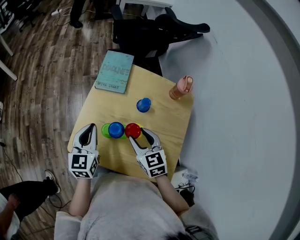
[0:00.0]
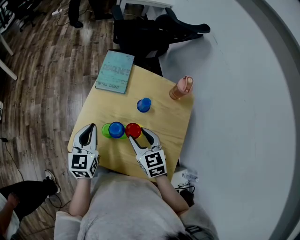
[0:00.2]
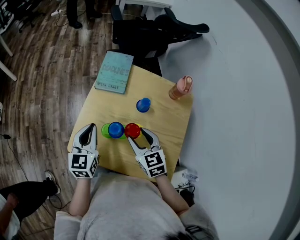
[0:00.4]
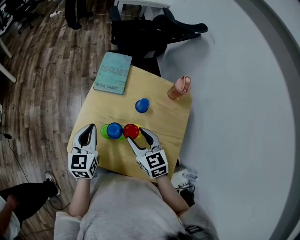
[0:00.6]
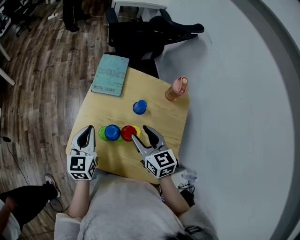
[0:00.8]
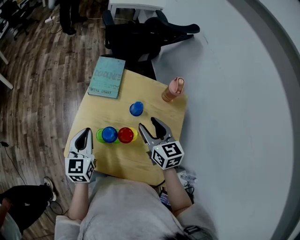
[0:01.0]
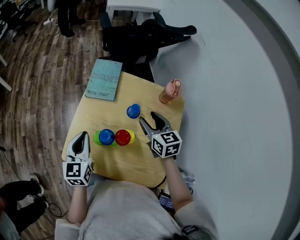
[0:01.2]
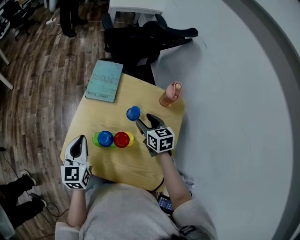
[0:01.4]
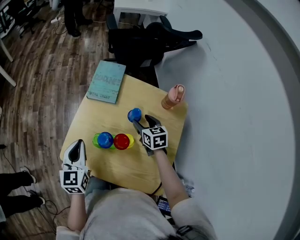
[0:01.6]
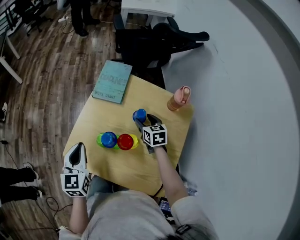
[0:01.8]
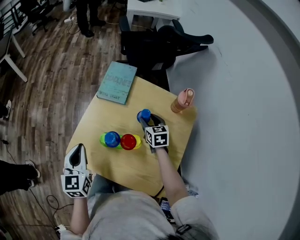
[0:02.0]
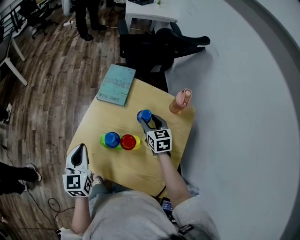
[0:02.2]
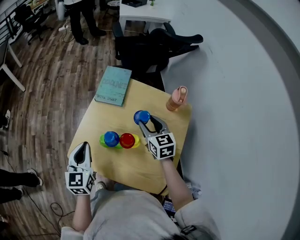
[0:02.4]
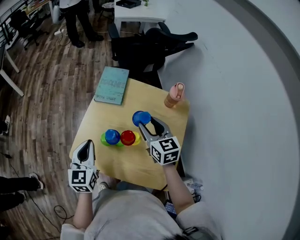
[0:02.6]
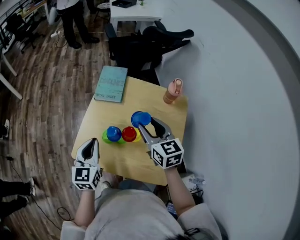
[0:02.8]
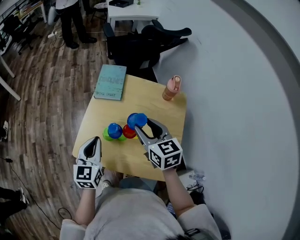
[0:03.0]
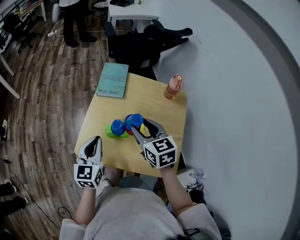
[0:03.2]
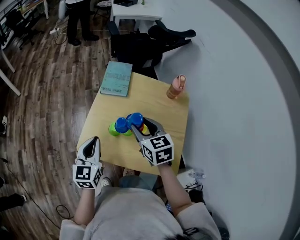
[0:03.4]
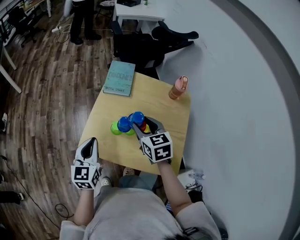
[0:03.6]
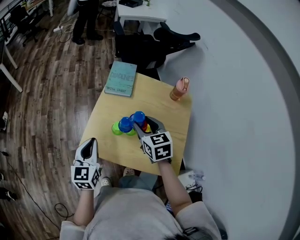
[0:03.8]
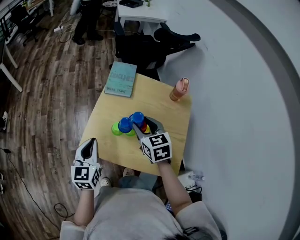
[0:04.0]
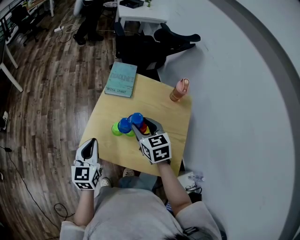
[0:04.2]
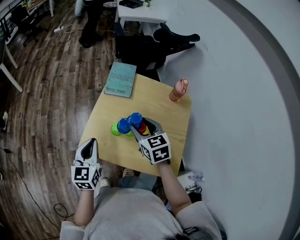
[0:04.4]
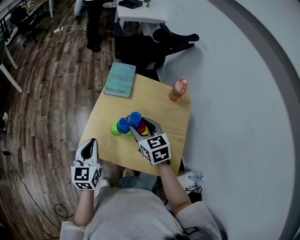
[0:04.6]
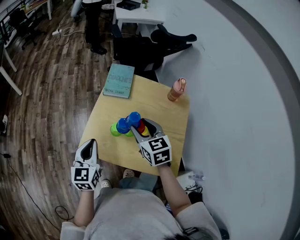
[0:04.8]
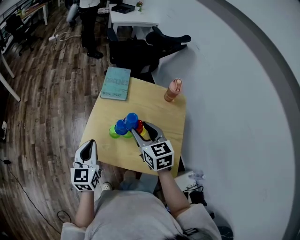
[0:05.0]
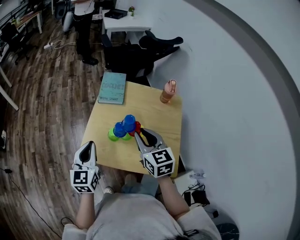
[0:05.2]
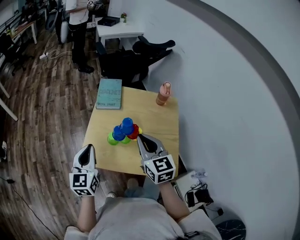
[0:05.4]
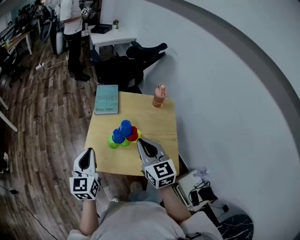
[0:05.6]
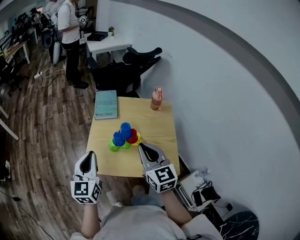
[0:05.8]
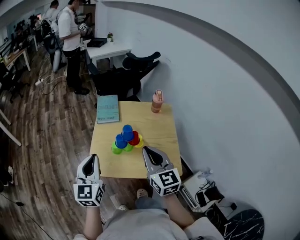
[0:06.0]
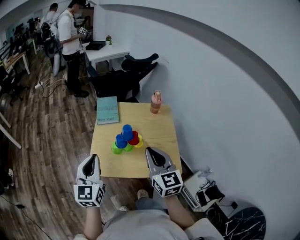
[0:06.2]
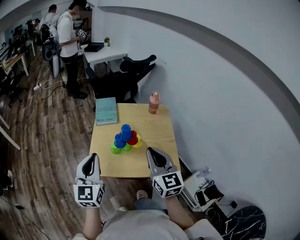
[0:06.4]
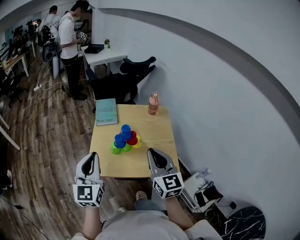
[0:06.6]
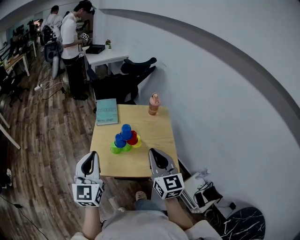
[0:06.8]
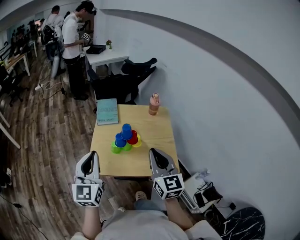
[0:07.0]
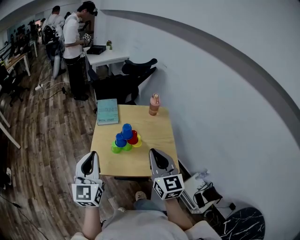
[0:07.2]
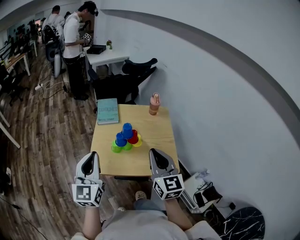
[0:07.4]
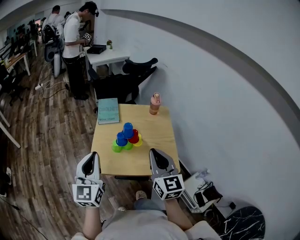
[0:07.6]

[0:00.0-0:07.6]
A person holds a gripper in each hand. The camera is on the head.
0.0 to 1.6 s: The right gripper travels forward, to the right and downward by roughly 15 cm.
1.6 to 3.0 s: The right gripper moves upward, backward and to the left, about 20 cm, while the left gripper moves roughly 5 cm.
3.0 to 4.6 s: Both grippers travel together to the left, approximately 5 cm.
4.6 to 6.0 s: The right gripper travels backward and upward by about 20 cm, turns by roughly 30 degrees, and closes; the left gripper travels upward by roughly 10 cm.
6.0 to 7.6 s: The right gripper shifts some 5 cm backward. Meanwhile the left gripper shifts by about 5 cm.

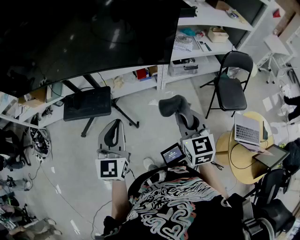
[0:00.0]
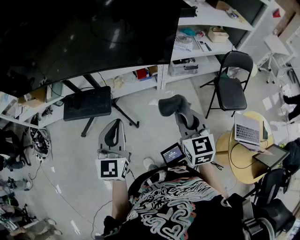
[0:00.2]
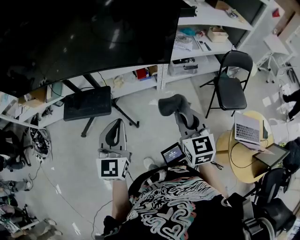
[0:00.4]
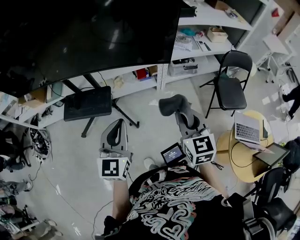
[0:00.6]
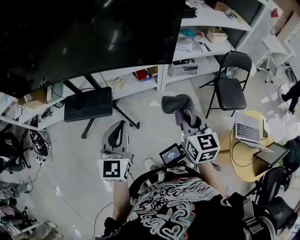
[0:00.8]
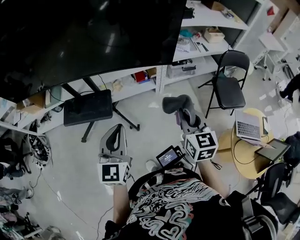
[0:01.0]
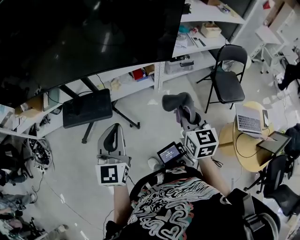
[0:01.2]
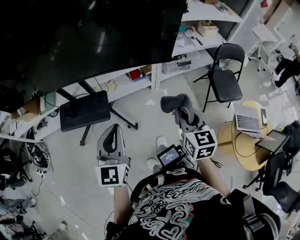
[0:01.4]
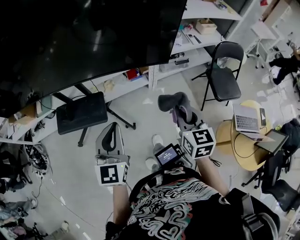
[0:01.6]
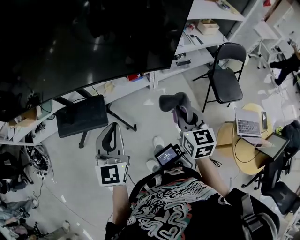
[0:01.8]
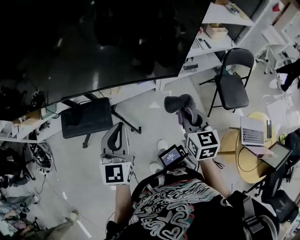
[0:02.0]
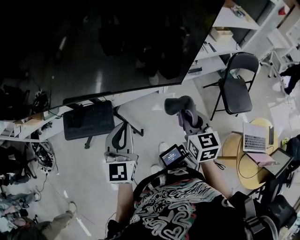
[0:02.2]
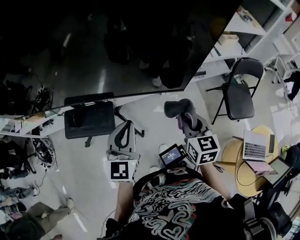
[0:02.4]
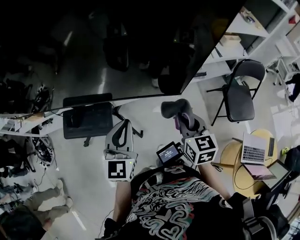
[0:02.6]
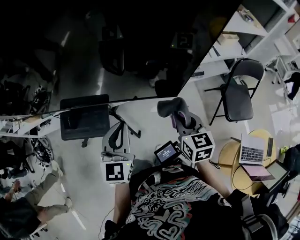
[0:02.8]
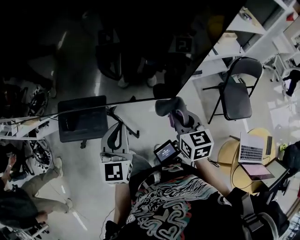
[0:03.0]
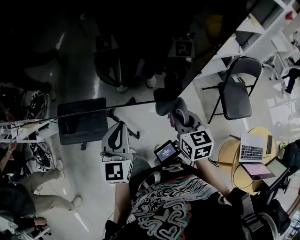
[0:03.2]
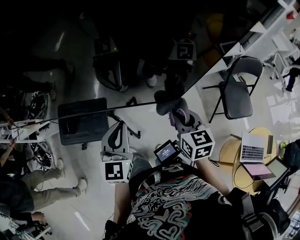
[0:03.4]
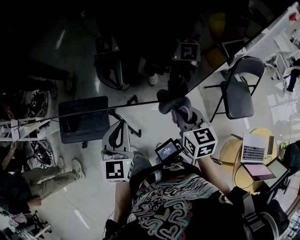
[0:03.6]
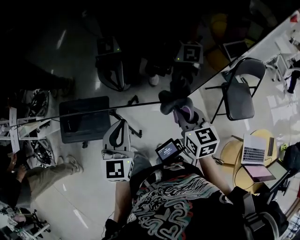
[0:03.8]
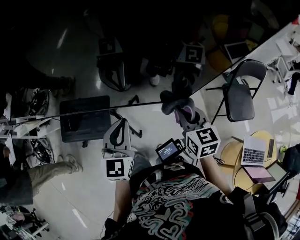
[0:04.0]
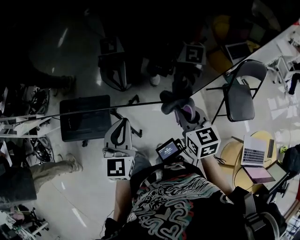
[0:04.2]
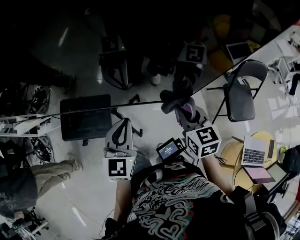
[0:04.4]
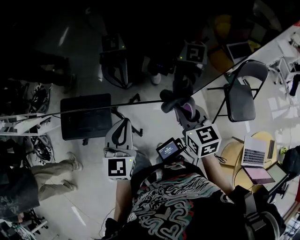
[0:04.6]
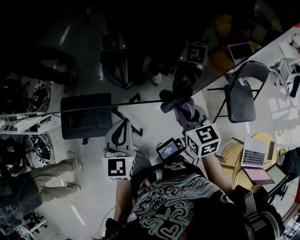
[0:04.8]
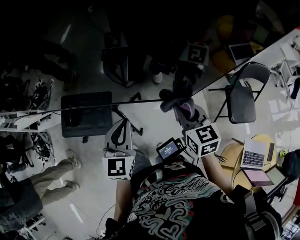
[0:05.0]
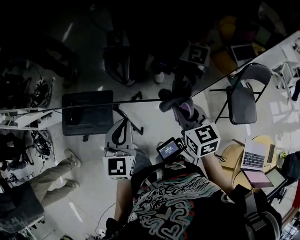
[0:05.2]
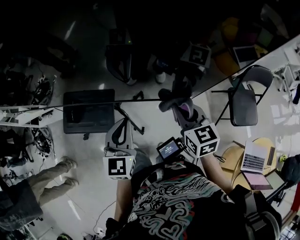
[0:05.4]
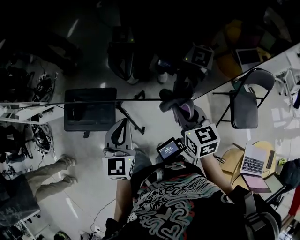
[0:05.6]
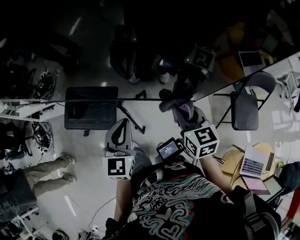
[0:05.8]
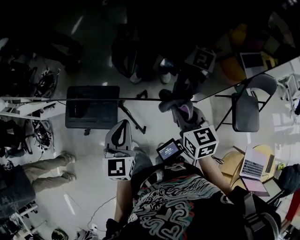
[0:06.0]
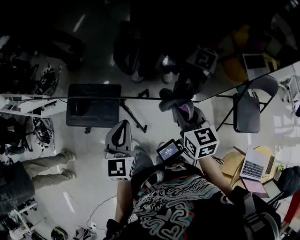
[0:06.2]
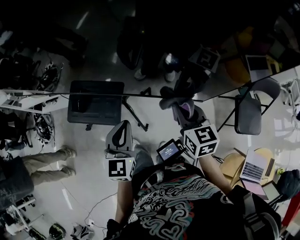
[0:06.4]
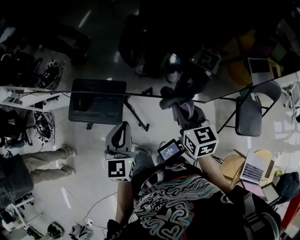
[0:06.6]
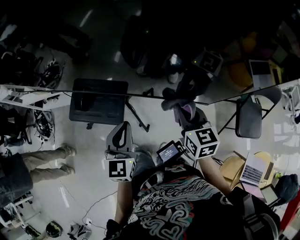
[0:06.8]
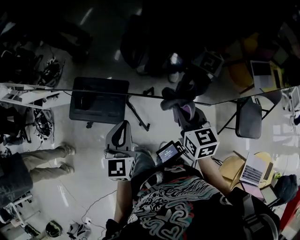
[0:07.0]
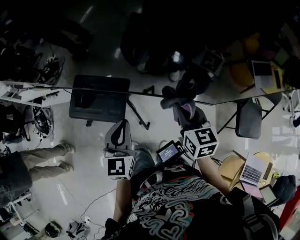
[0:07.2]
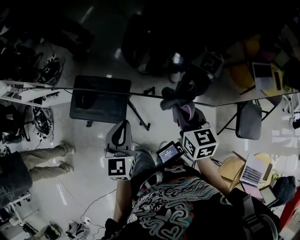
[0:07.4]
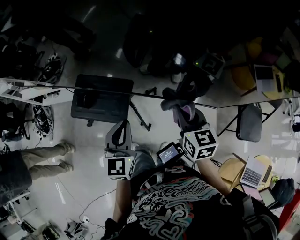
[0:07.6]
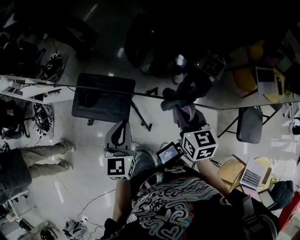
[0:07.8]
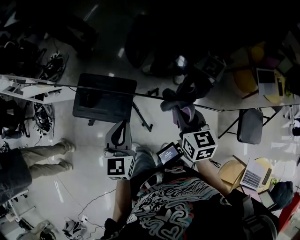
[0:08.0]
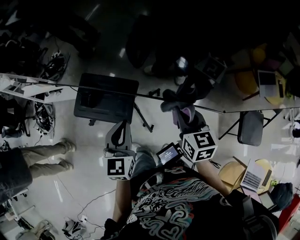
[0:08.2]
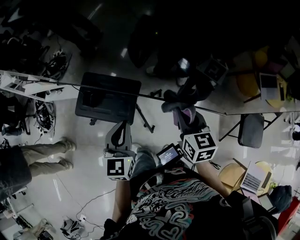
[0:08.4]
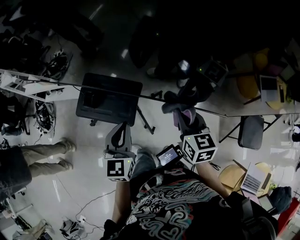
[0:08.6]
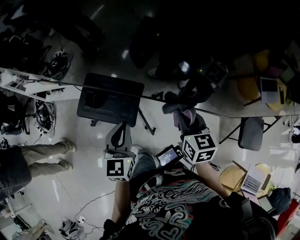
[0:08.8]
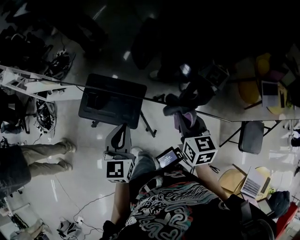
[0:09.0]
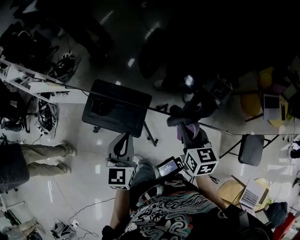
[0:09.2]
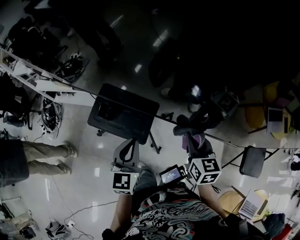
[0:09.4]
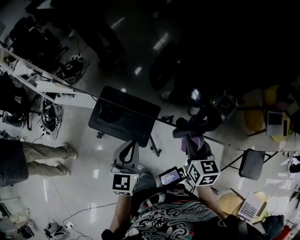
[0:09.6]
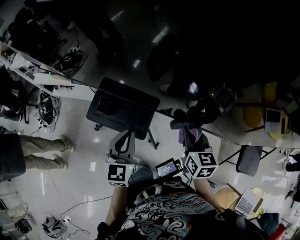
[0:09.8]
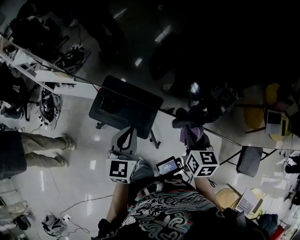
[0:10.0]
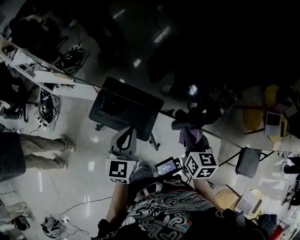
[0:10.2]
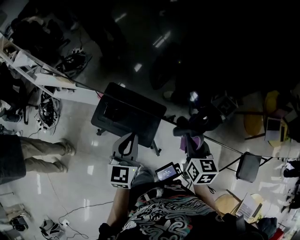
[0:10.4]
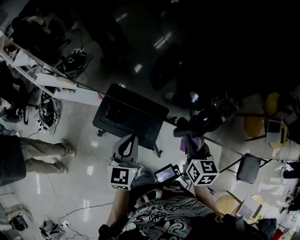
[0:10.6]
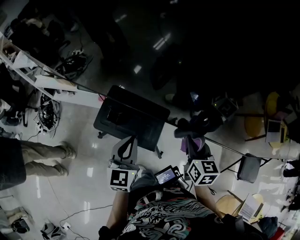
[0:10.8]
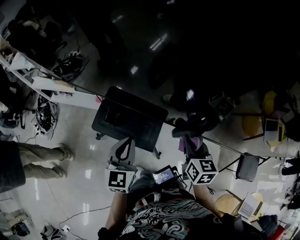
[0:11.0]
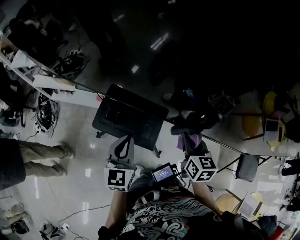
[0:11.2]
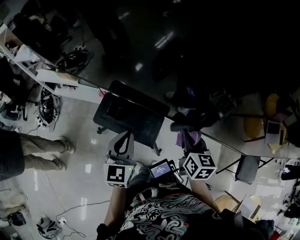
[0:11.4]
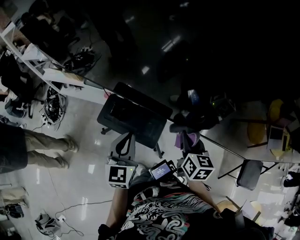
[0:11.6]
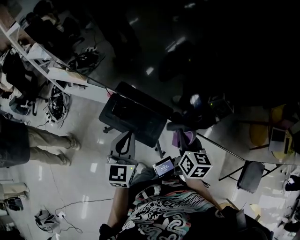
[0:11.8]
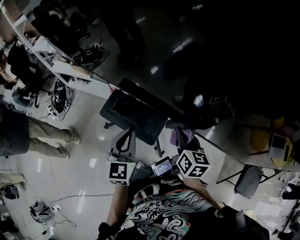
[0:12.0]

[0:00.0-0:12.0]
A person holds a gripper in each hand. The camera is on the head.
0.0 to 1.6 s: The left gripper moves forward, some 5 cm. Meanwhile the right gripper changes place by roughly 5 cm.
1.6 to 3.0 s: Both grippers move forward, roughly 20 cm.
3.0 to 4.4 s: The grippers move only a little.
4.4 to 6.0 s: There are only small adjustments of the grippers.
6.0 to 7.6 s: The two grippers go about 10 cm to the left.
7.6 to 9.0 s: Both grippers travel together to the left, about 10 cm.
9.0 to 10.4 s: The left gripper is displaced to the left and forward by about 10 cm. Meanwhile the right gripper is displaced to the left by roughly 10 cm.
10.4 to 12.0 s: There are only small adjustments of the grippers.

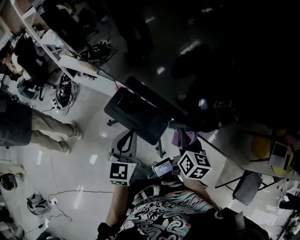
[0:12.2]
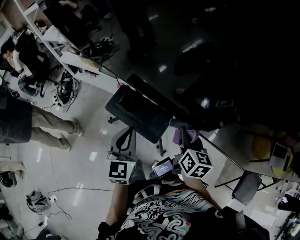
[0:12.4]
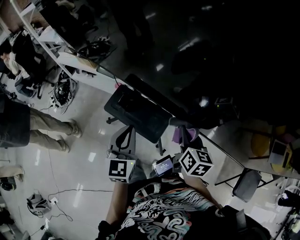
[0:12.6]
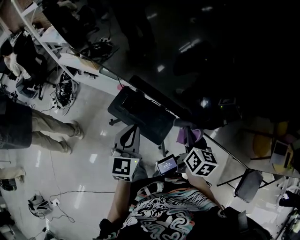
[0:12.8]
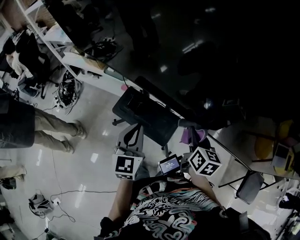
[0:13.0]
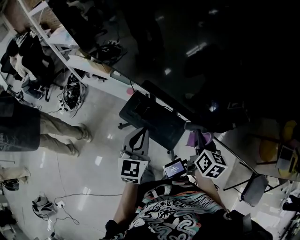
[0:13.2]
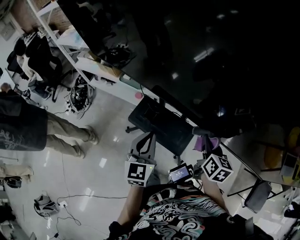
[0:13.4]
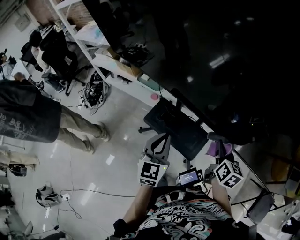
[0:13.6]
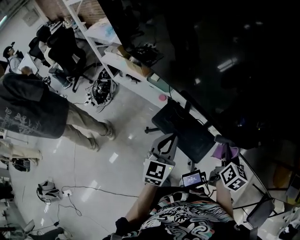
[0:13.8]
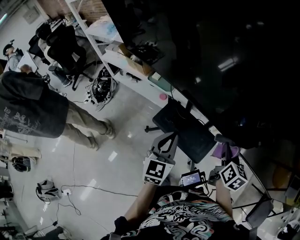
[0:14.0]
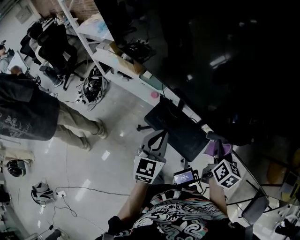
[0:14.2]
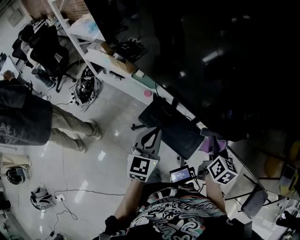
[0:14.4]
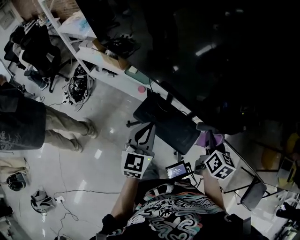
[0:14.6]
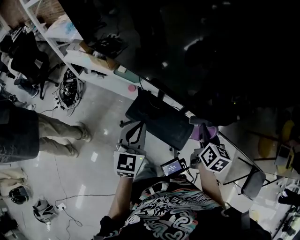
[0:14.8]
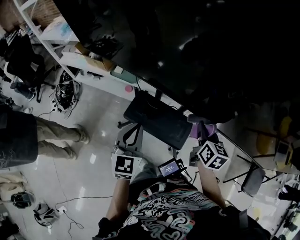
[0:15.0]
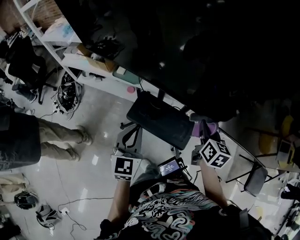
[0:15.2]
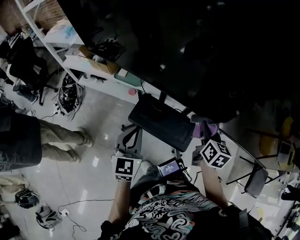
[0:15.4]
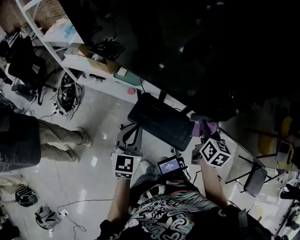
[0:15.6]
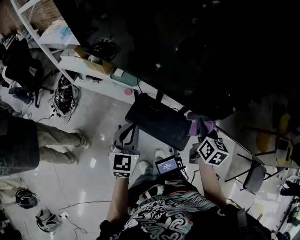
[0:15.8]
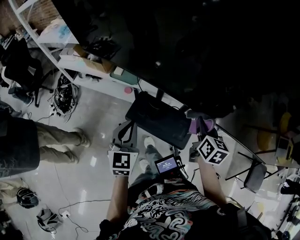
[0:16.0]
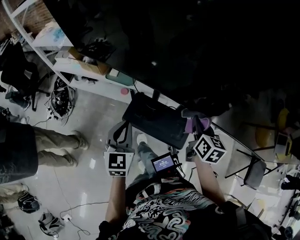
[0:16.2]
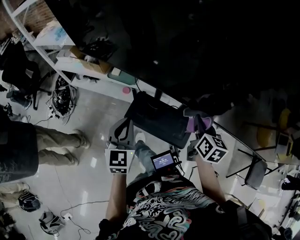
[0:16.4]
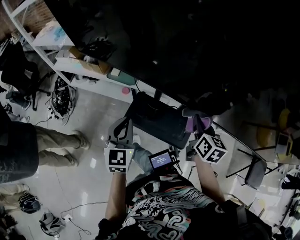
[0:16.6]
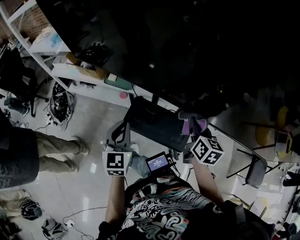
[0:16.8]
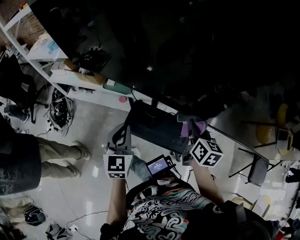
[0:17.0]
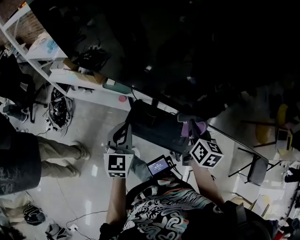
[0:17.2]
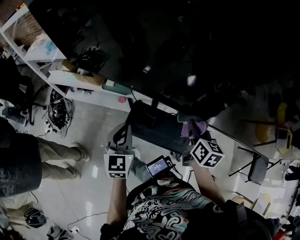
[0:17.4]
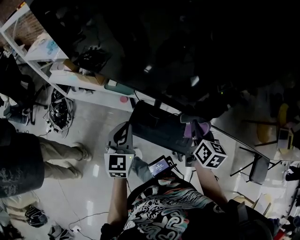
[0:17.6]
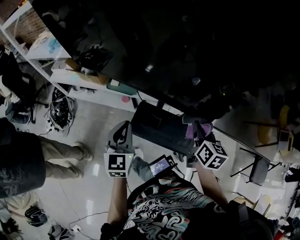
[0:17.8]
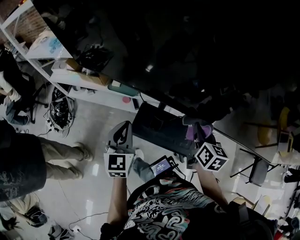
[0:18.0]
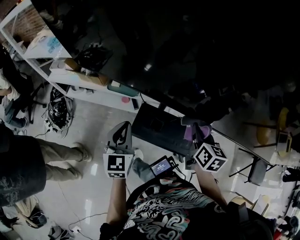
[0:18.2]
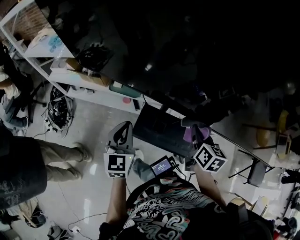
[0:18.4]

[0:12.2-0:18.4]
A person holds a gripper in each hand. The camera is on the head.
12.2 to 13.8 s: Both grippers travel together to the left and forward, approximately 15 cm.
13.8 to 15.4 s: The left gripper goes some 10 cm to the left, while the right gripper moves to the left, some 5 cm.
15.4 to 16.8 s: The left gripper ends up some 5 cm from where it was.
16.8 to 18.4 s: The left gripper moves to the left and forward, approximately 10 cm. Meanwhile the right gripper shifts roughly 10 cm to the left.
